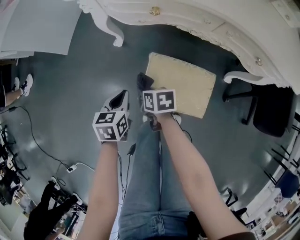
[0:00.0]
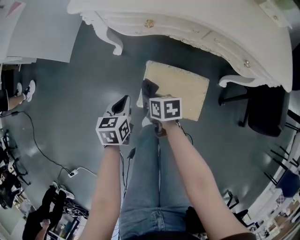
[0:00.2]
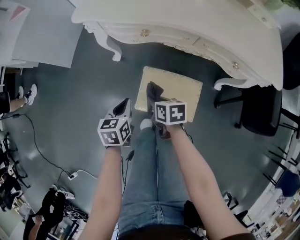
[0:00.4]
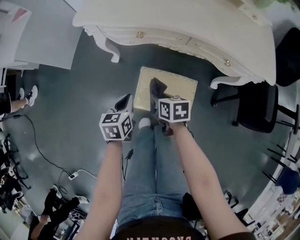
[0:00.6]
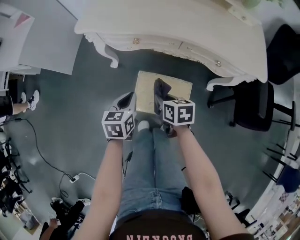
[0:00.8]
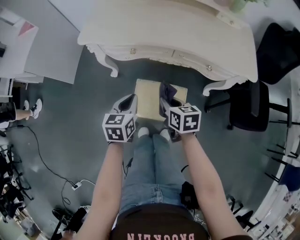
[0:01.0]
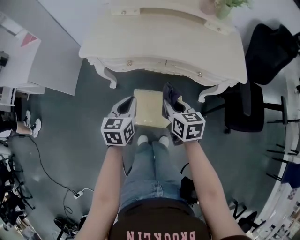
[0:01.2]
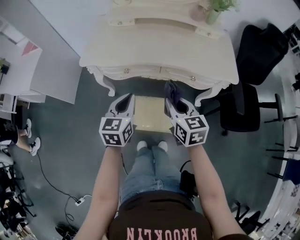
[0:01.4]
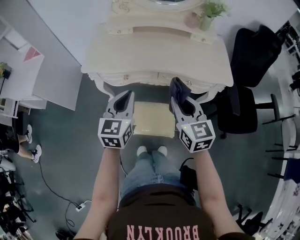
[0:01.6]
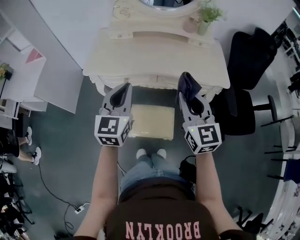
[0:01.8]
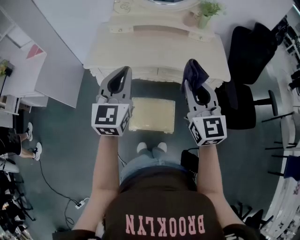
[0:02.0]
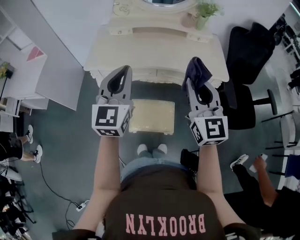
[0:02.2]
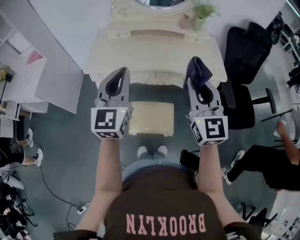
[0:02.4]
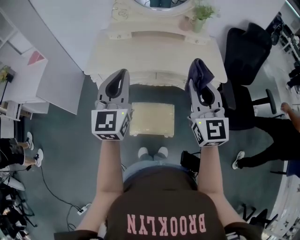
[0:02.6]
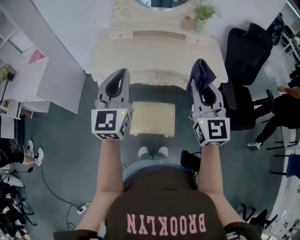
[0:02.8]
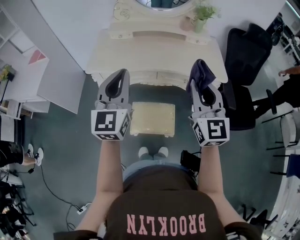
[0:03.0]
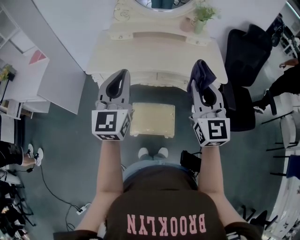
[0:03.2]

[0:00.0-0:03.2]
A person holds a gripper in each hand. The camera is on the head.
0:00.0 to 0:01.6: Both grippers travel together upward, some 50 cm. The left gripper tilts its fingers some 30 degrees upward. Meanwhile the right gripper tilts its fingers some 40 degrees upward.
0:01.6 to 0:03.2: The left gripper goes about 15 cm upward, and rotates some 20 degrees. Meanwhile the right gripper goes roughly 15 cm upward and to the right, and rotates roughly 30 degrees.

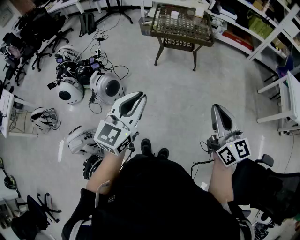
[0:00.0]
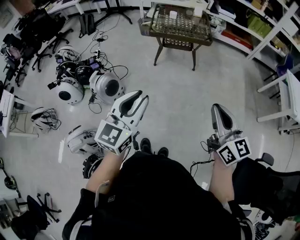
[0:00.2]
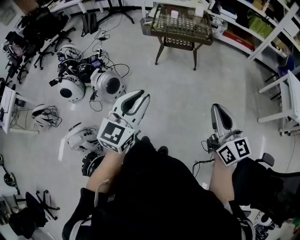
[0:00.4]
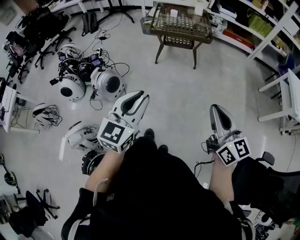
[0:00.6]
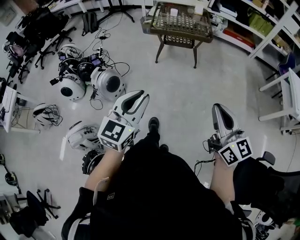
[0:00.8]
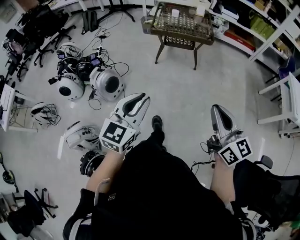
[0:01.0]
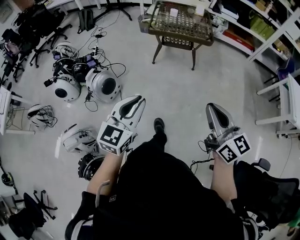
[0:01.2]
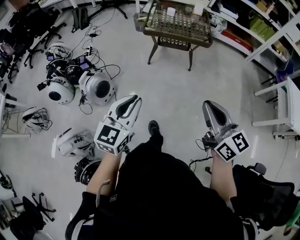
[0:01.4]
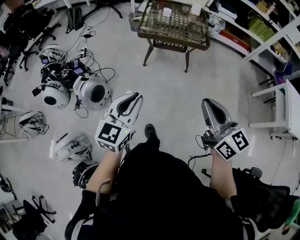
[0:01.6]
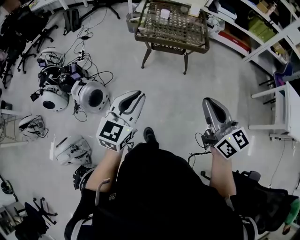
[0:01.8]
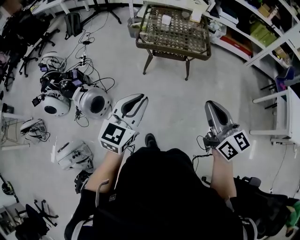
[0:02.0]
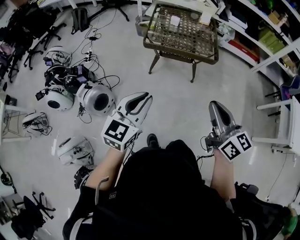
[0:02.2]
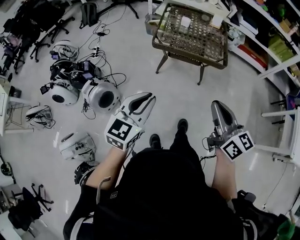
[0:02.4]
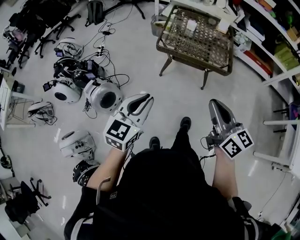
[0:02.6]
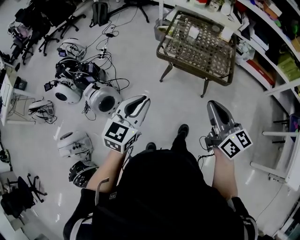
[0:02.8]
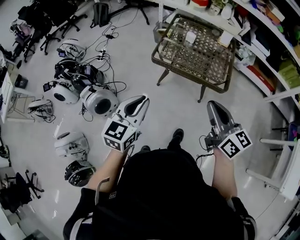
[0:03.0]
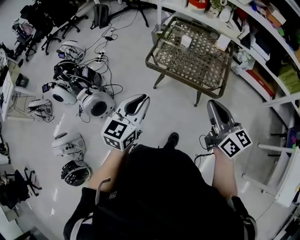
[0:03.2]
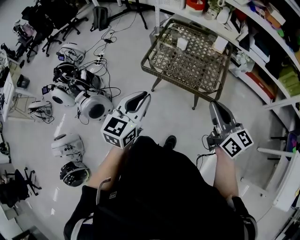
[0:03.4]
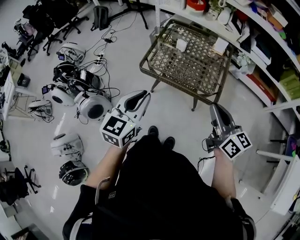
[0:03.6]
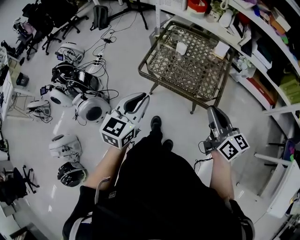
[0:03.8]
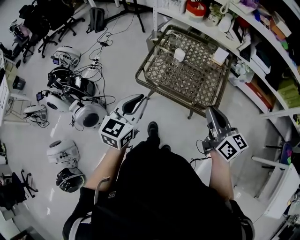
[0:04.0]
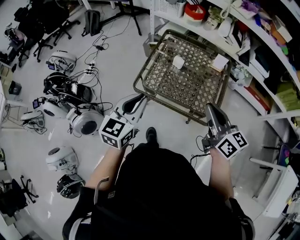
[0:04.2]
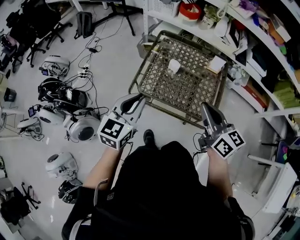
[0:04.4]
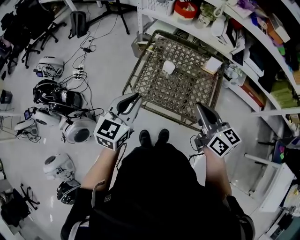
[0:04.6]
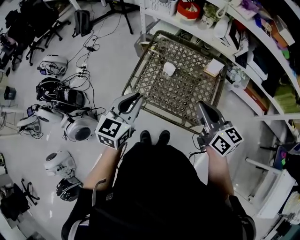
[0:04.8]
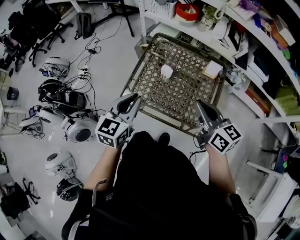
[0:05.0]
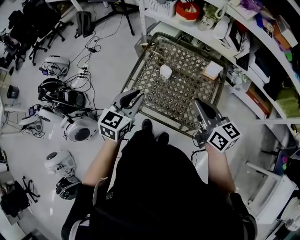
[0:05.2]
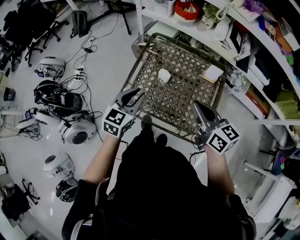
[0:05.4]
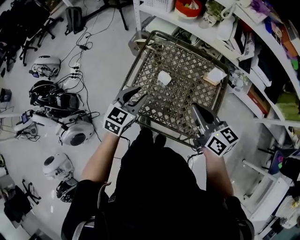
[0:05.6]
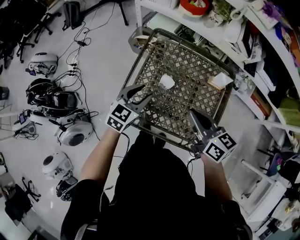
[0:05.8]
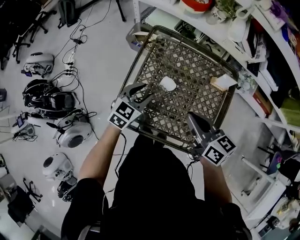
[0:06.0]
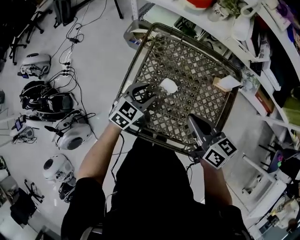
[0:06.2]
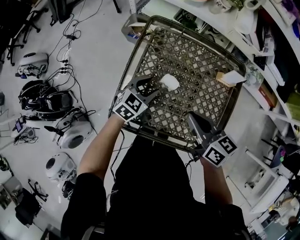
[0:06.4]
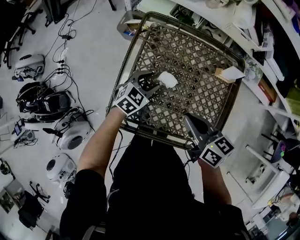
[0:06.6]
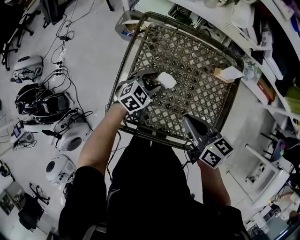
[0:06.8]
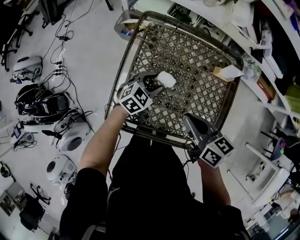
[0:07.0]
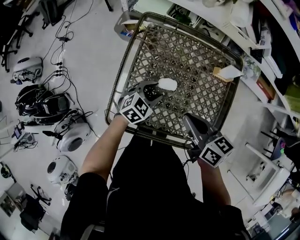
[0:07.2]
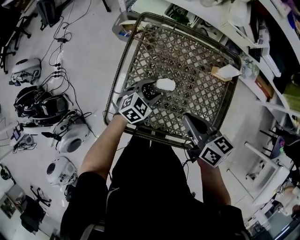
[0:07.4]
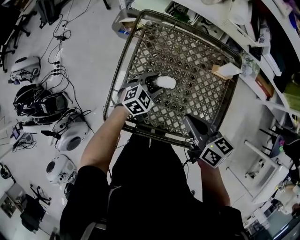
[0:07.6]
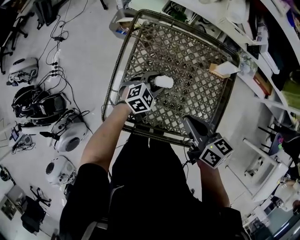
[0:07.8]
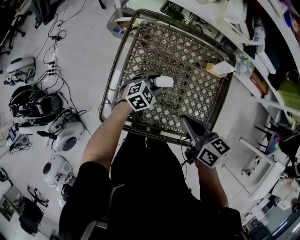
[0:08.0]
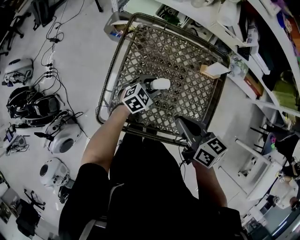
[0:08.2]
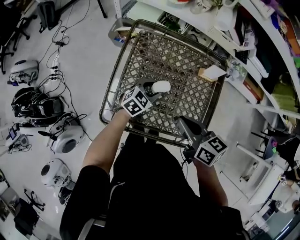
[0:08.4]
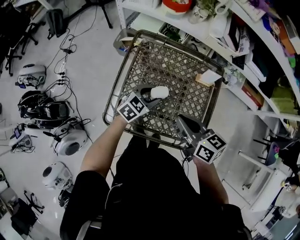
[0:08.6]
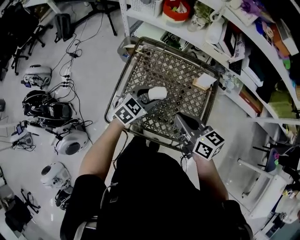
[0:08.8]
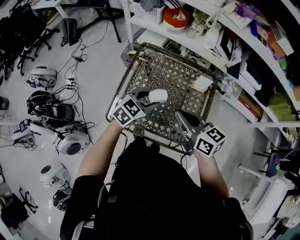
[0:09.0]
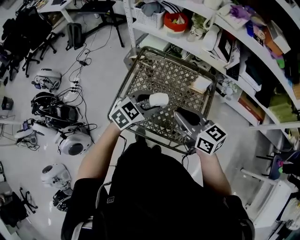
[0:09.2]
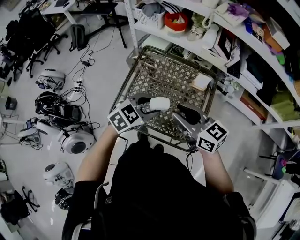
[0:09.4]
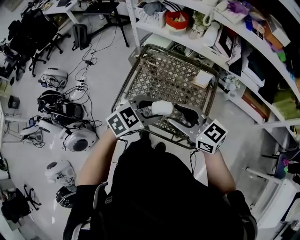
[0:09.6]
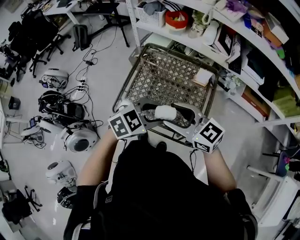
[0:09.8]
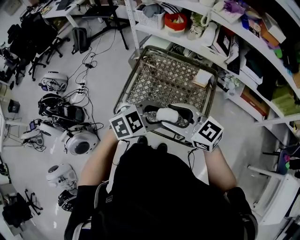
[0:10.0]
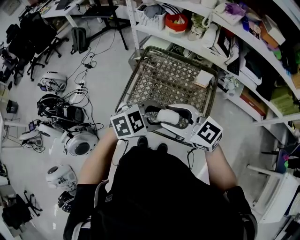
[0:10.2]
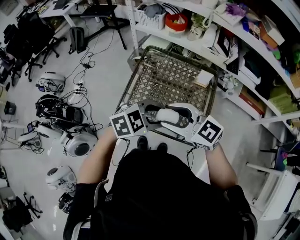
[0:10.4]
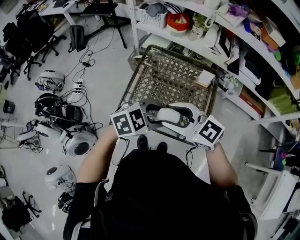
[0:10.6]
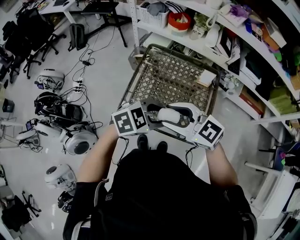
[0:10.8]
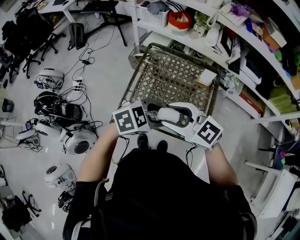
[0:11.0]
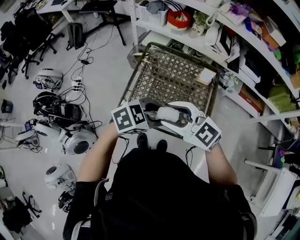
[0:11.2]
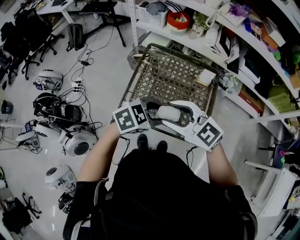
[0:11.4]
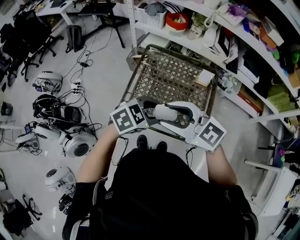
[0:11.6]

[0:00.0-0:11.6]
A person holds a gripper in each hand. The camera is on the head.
0:00.0 to 0:01.4: The right gripper goes approximately 10 cm forward. The left gripper shifts roughly 10 cm forward and downward.
0:01.4 to 0:02.8: Both grippers move forward, some 30 cm.
0:02.8 to 0:04.4: The grippers both shift forward and to the right by some 35 cm.
0:04.4 to 0:05.8: Both grippers travel together forward and downward, approximately 25 cm. The left gripper opens.
0:05.8 to 0:07.2: The left gripper goes approximately 15 cm downward and to the right, and turns by roughly 30 degrees; the right gripper goes approximately 10 cm downward.
0:07.2 to 0:08.8: The left gripper heads upward, covering some 15 cm; the right gripper shifts some 10 cm upward.
0:08.8 to 0:10.2: The right gripper shifts by some 15 cm, changes its angle by some 40 degrees, and opens; the left gripper shifts by about 25 cm, and changes its angle by about 20 degrees.
0:10.2 to 0:11.6: The left gripper changes place by some 5 cm; the right gripper changes place by some 5 cm.

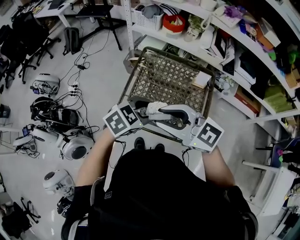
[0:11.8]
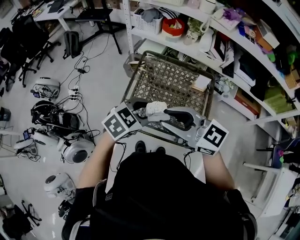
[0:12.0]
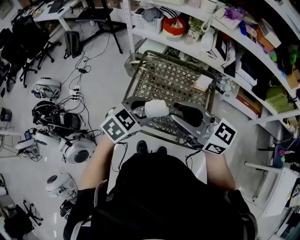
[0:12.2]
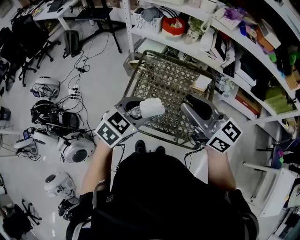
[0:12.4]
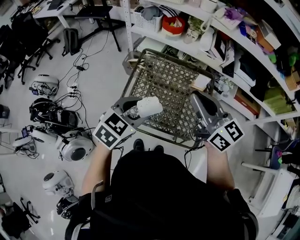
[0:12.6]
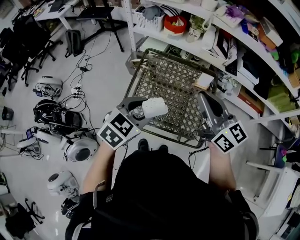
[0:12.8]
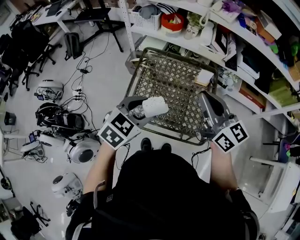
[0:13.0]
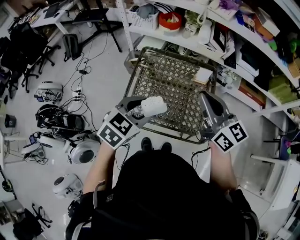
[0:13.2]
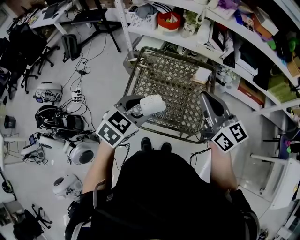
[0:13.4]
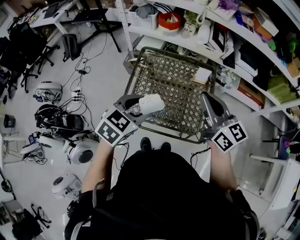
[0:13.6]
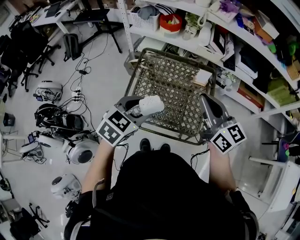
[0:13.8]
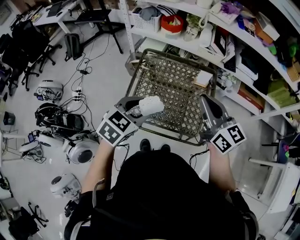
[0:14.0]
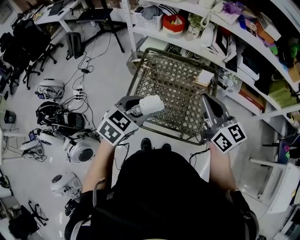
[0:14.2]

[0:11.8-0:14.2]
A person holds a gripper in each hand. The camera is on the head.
0:11.8 to 0:13.0: The right gripper changes place by roughly 15 cm, swivels approximately 40 degrees, and closes up.
0:13.0 to 0:14.2: The grippers stay close to where they were, moving slightly.

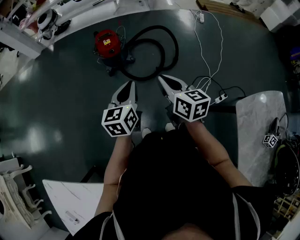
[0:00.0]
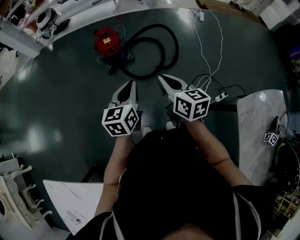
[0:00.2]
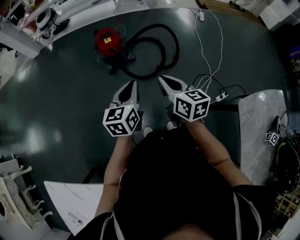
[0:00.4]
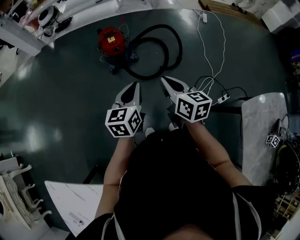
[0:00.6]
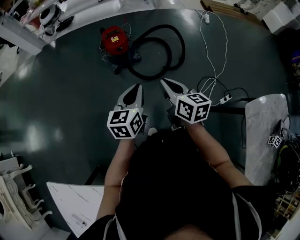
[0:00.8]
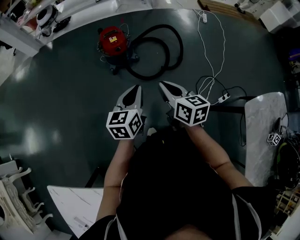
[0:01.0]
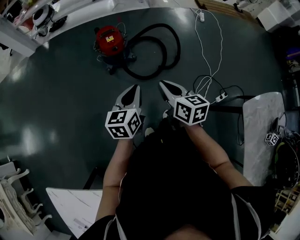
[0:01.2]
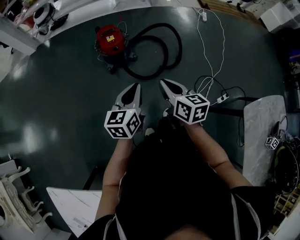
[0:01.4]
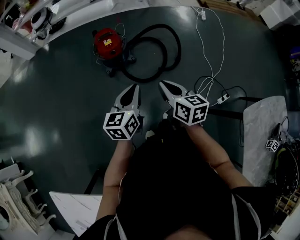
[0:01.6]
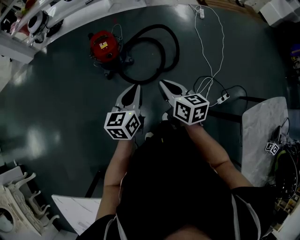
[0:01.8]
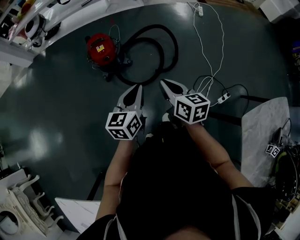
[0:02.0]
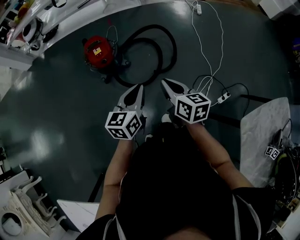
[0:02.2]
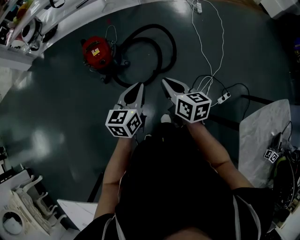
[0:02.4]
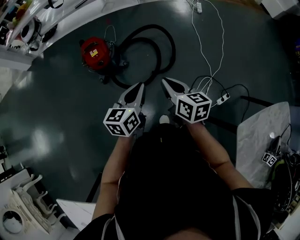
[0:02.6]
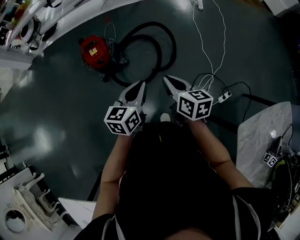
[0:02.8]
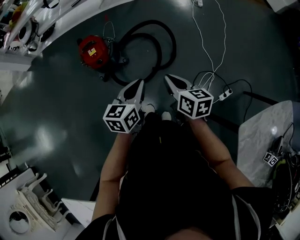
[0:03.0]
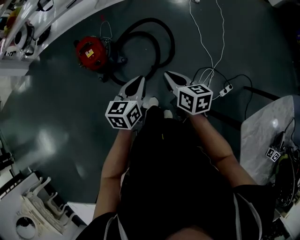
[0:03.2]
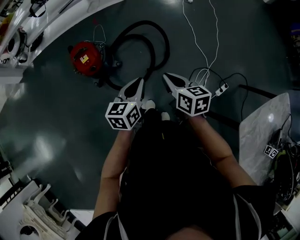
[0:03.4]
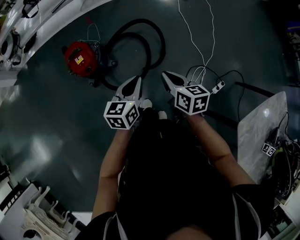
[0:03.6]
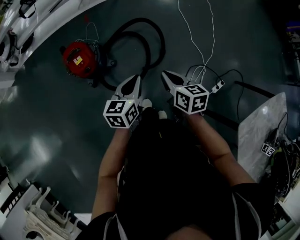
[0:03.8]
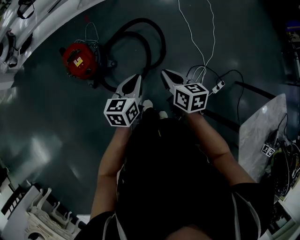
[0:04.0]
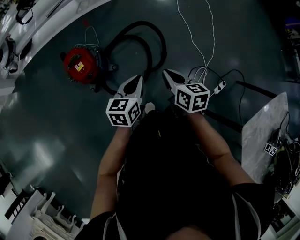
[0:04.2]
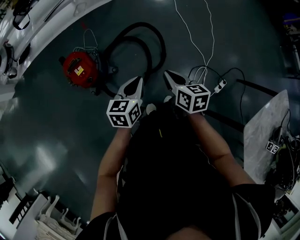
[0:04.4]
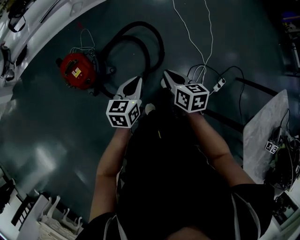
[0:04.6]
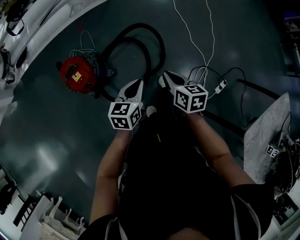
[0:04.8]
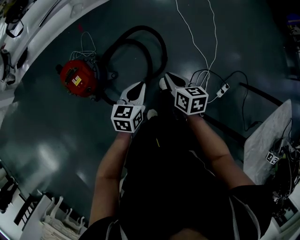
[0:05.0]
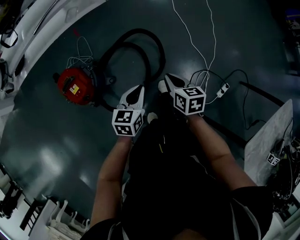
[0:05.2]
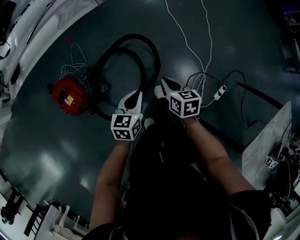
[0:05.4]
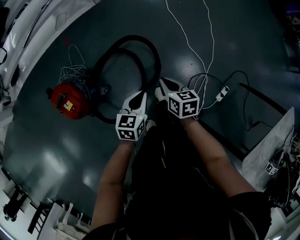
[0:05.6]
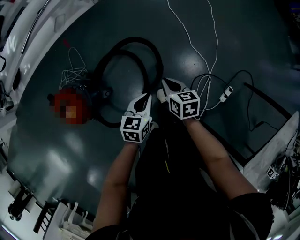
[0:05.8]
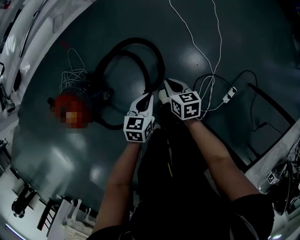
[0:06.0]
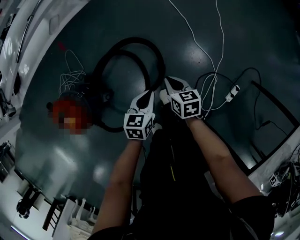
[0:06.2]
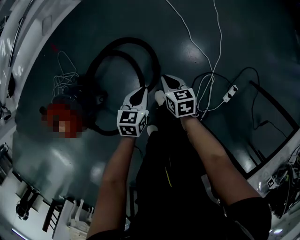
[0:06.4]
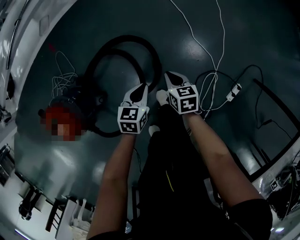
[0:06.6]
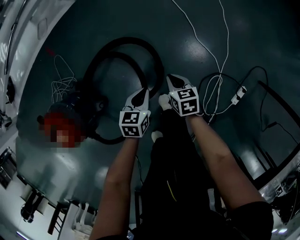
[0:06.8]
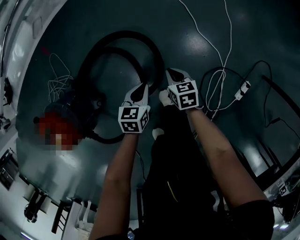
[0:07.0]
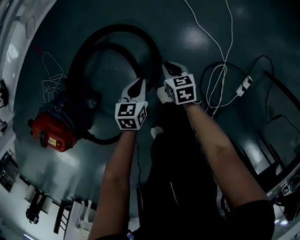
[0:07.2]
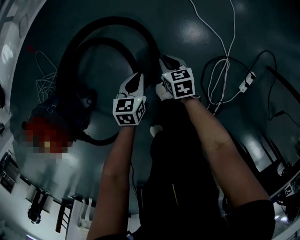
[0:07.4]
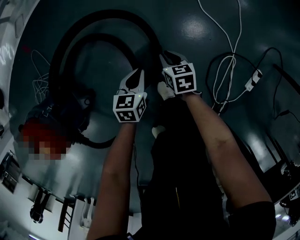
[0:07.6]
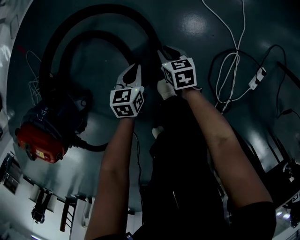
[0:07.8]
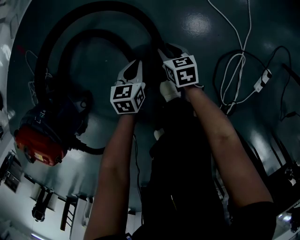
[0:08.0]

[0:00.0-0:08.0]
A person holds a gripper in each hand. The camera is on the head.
0:00.0 to 0:01.6: The grippers both shift forward by roughly 5 cm.
0:01.6 to 0:03.2: The right gripper heads forward, to the right and downward, covering roughly 25 cm, while the left gripper travels forward and to the right by roughly 25 cm.
0:03.2 to 0:04.8: The two grippers go approximately 15 cm forward and downward.
0:04.8 to 0:06.4: Both grippers travel together downward, forward and to the right, some 35 cm.
0:06.4 to 0:08.0: Both grippers travel together downward, approximately 35 cm. The right gripper opens.
